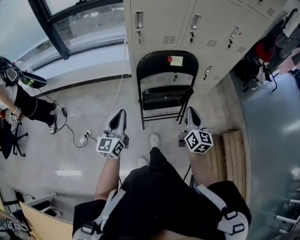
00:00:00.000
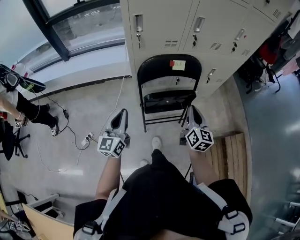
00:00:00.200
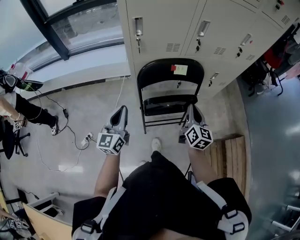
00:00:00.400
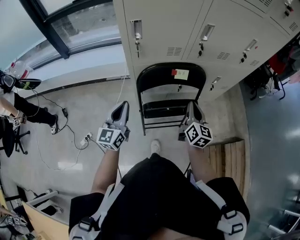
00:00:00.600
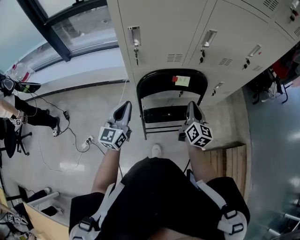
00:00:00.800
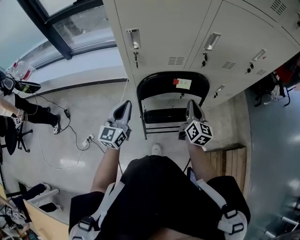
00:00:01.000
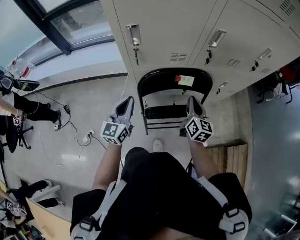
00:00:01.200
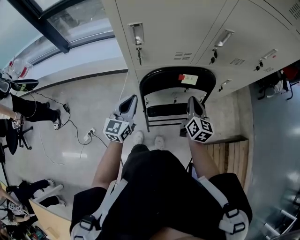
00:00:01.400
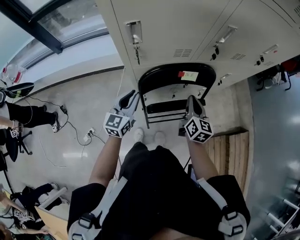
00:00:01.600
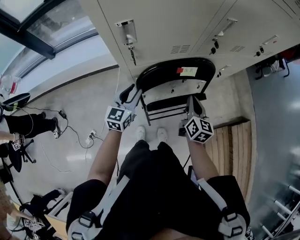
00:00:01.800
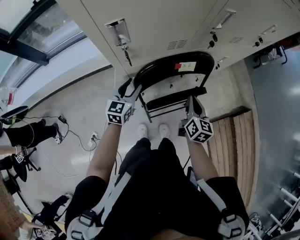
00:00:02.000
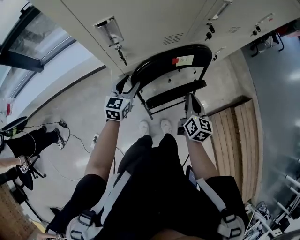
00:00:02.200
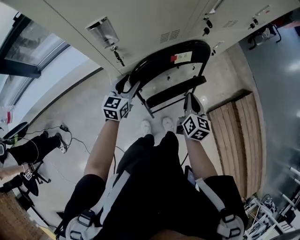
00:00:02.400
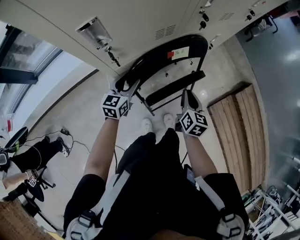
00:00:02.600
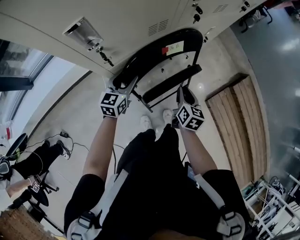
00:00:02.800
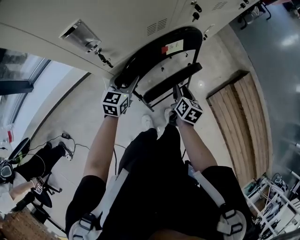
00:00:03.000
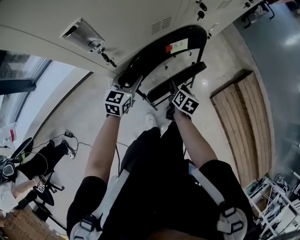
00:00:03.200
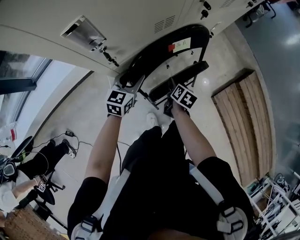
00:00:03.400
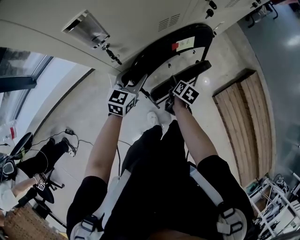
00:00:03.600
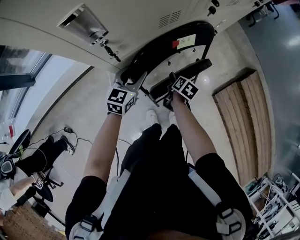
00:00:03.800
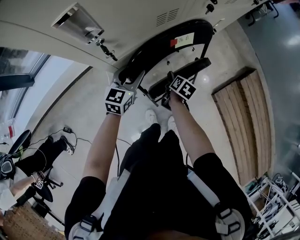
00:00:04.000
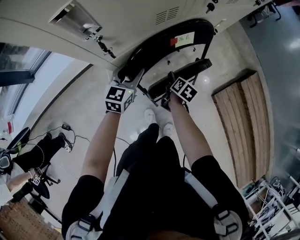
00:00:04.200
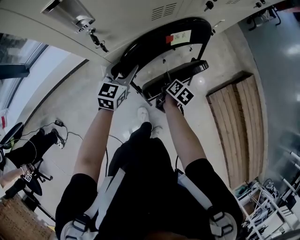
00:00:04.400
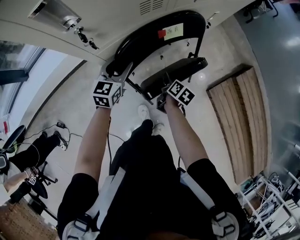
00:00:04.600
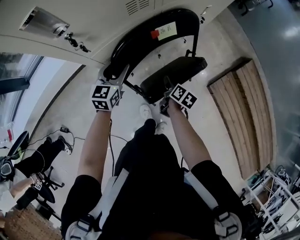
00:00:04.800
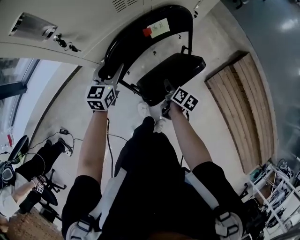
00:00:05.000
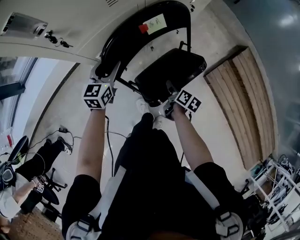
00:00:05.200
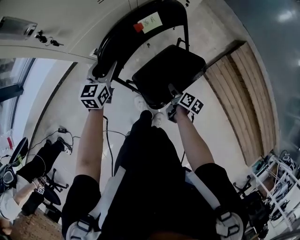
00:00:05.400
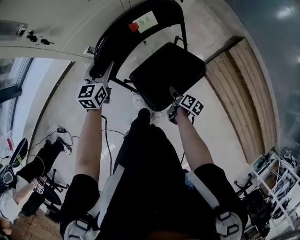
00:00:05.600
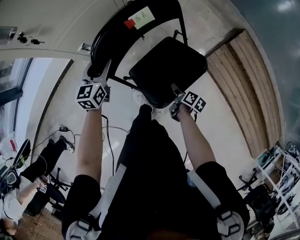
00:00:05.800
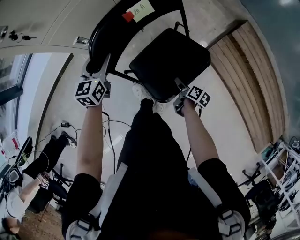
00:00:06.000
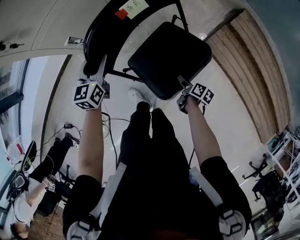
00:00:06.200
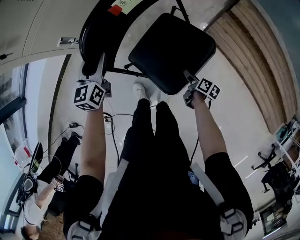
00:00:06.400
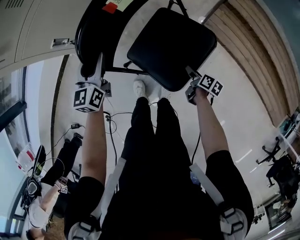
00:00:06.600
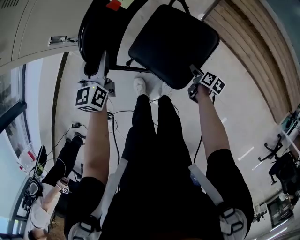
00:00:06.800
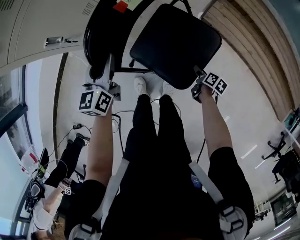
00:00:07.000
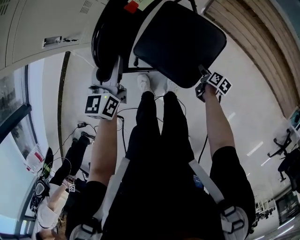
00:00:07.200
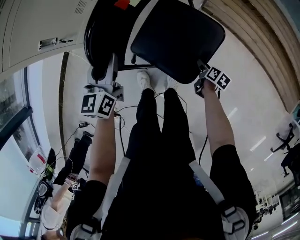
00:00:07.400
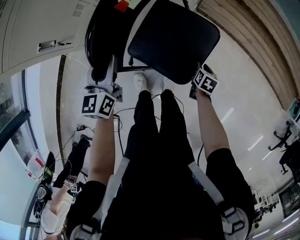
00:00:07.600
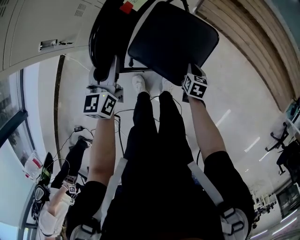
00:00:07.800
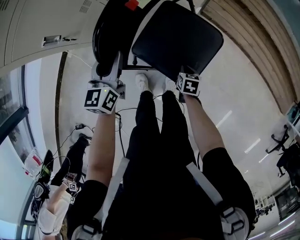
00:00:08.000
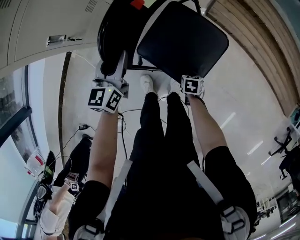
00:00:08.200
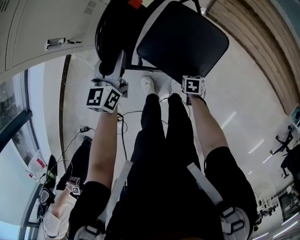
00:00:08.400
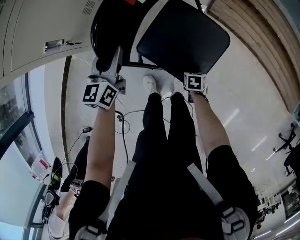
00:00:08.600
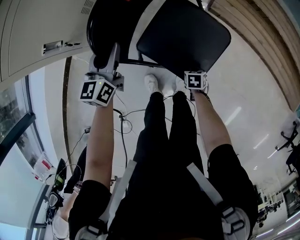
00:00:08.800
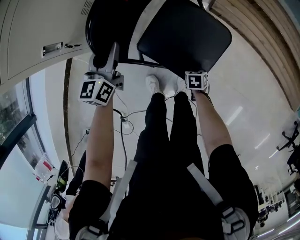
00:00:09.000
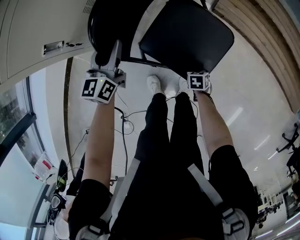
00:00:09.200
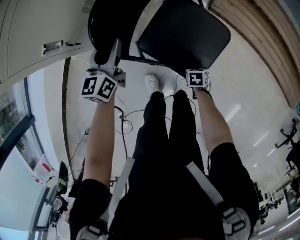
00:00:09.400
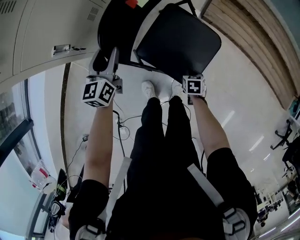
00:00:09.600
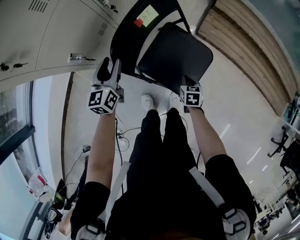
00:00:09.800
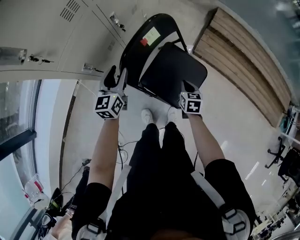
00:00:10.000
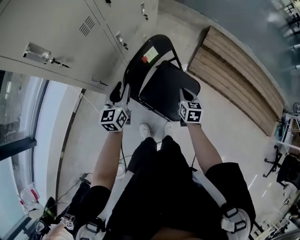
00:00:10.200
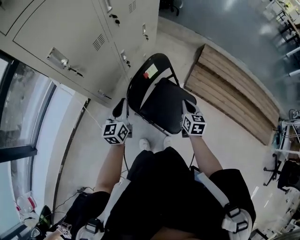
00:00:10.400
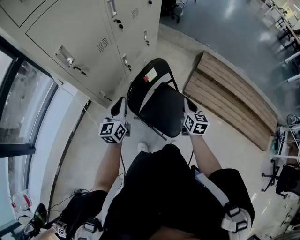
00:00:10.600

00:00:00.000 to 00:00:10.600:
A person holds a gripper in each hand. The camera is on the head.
00:00:00.000 to 00:00:01.600: Both grippers travel together forward, roughly 25 cm.
00:00:01.600 to 00:00:03.000: The left gripper moves downward and forward, about 15 cm, turns by approximately 30 degrees, and opens. The right gripper travels downward and backward by some 15 cm, turns by roughly 40 degrees, and opens.
00:00:03.000 to 00:00:04.600: The right gripper travels downward by roughly 10 cm.
00:00:04.600 to 00:00:06.000: The left gripper is displaced backward and to the right by roughly 10 cm; the right gripper is displaced backward, to the right and downward by roughly 30 cm.
00:00:06.000 to 00:00:07.600: The left gripper shifts by roughly 15 cm. The right gripper ends up roughly 20 cm from where it was, changes its angle by some 40 degrees, and closes its fingers.
00:00:07.600 to 00:00:09.000: The right gripper ends up approximately 15 cm from where it was, turns by roughly 30 degrees, and closes up; the left gripper ends up approximately 10 cm from where it was.
00:00:09.000 to 00:00:10.600: The left gripper heads upward, covering about 25 cm, and closes; the right gripper shifts some 50 cm upward, and tips its fingers upward by about 50 degrees.

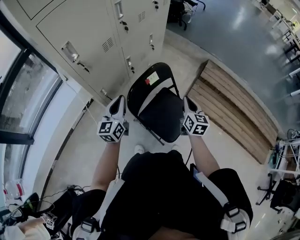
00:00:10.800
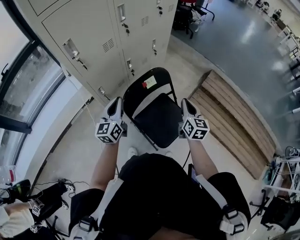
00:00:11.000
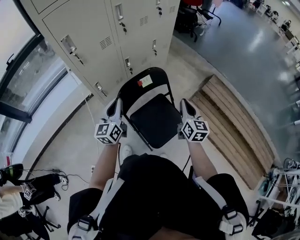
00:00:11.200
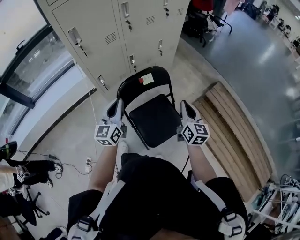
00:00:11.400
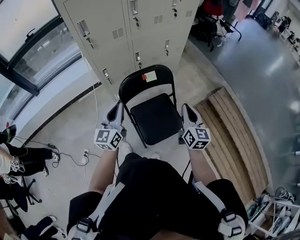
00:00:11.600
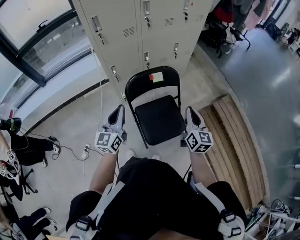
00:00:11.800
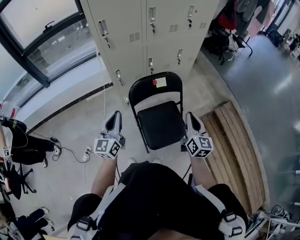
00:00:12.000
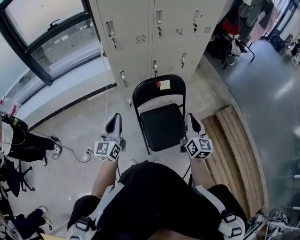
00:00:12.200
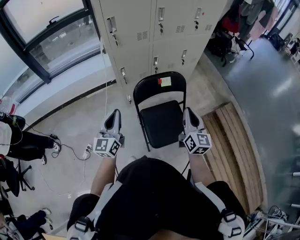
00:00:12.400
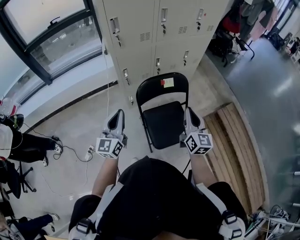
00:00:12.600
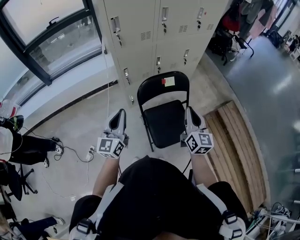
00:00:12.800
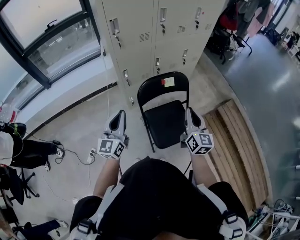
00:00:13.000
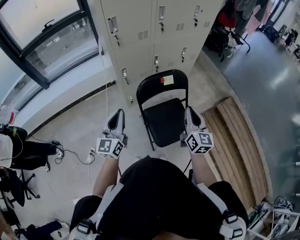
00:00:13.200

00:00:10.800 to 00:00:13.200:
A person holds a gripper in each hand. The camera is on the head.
00:00:10.800 to 00:00:12.000: The left gripper ends up roughly 25 cm from where it was, and swivels roughly 30 degrees, while the right gripper ends up some 10 cm from where it was, and changes its angle by roughly 30 degrees.
00:00:12.000 to 00:00:13.200: The grippers both shift to the left by roughly 5 cm.

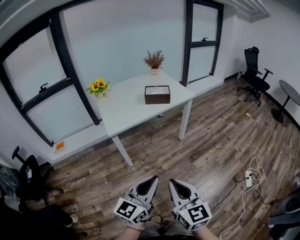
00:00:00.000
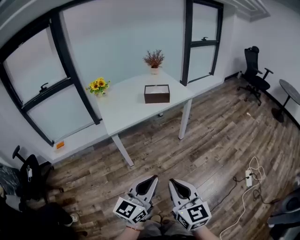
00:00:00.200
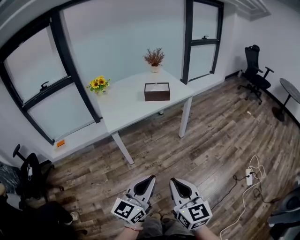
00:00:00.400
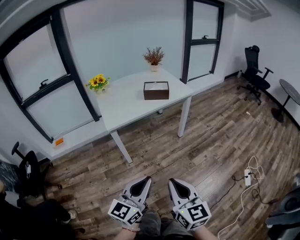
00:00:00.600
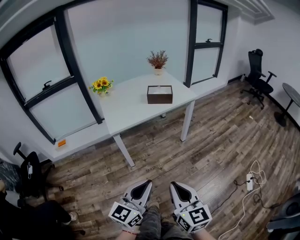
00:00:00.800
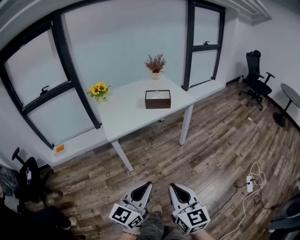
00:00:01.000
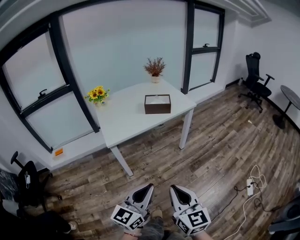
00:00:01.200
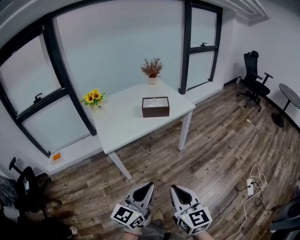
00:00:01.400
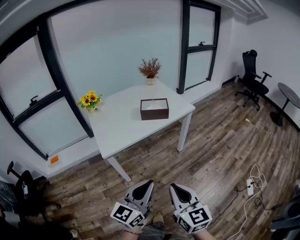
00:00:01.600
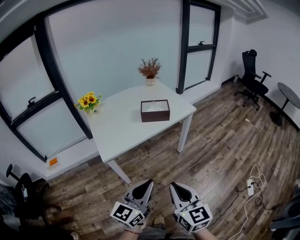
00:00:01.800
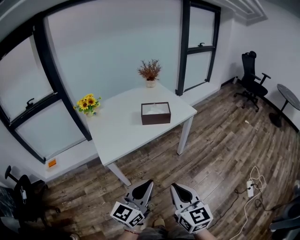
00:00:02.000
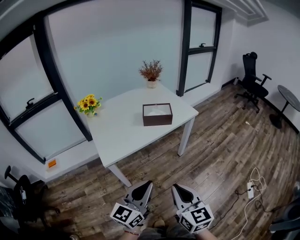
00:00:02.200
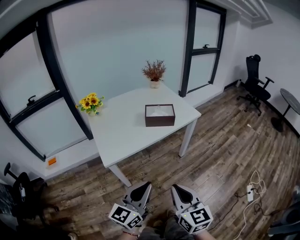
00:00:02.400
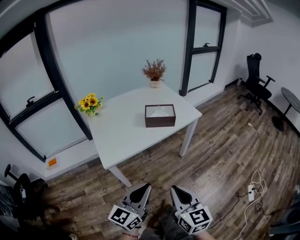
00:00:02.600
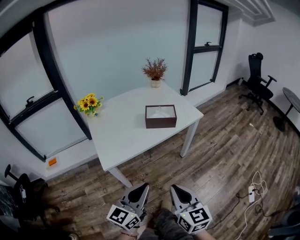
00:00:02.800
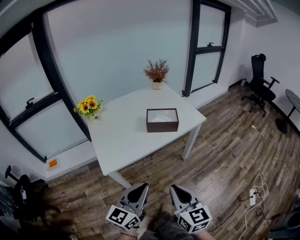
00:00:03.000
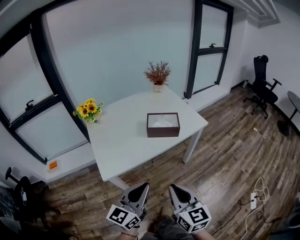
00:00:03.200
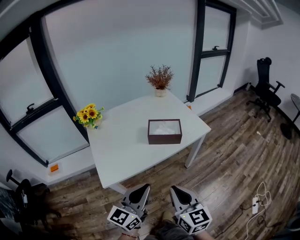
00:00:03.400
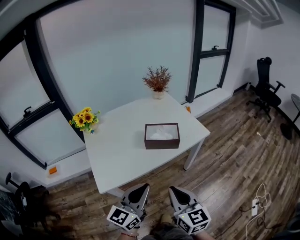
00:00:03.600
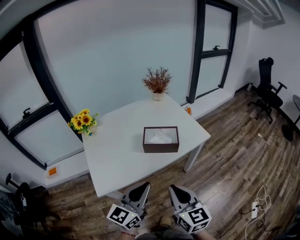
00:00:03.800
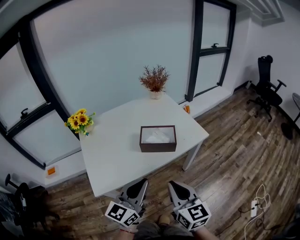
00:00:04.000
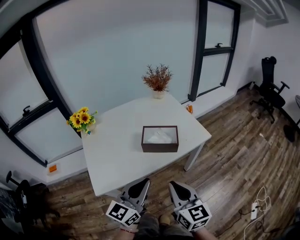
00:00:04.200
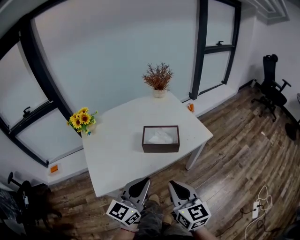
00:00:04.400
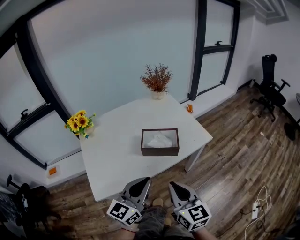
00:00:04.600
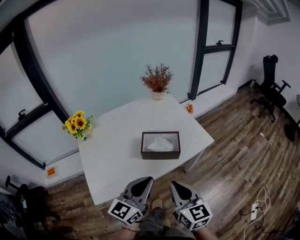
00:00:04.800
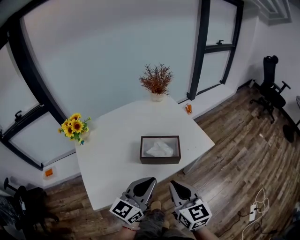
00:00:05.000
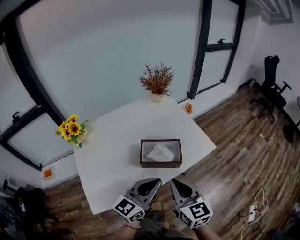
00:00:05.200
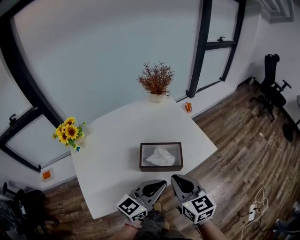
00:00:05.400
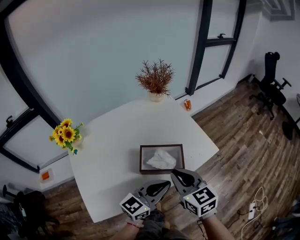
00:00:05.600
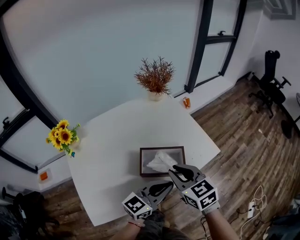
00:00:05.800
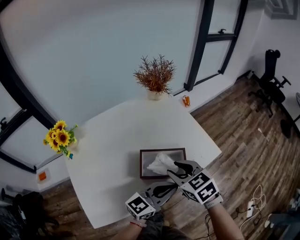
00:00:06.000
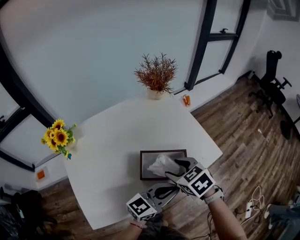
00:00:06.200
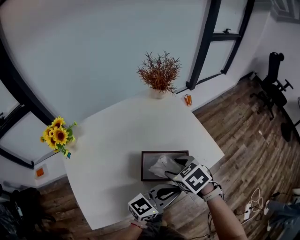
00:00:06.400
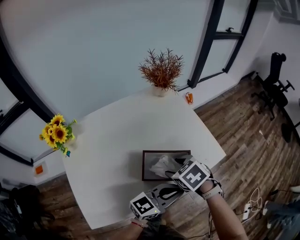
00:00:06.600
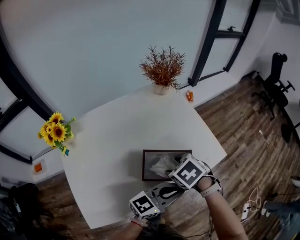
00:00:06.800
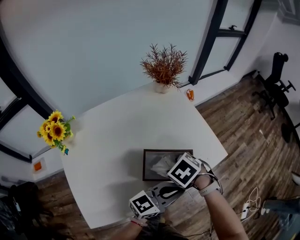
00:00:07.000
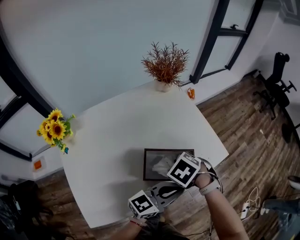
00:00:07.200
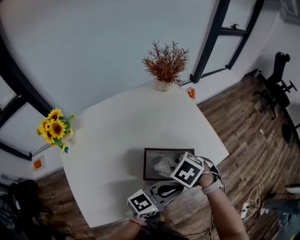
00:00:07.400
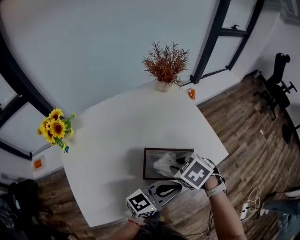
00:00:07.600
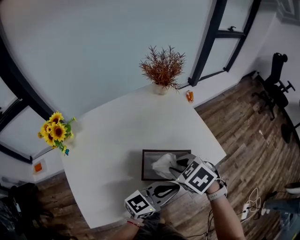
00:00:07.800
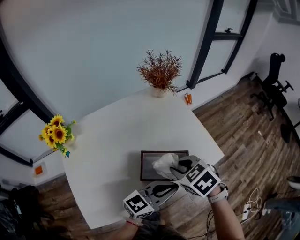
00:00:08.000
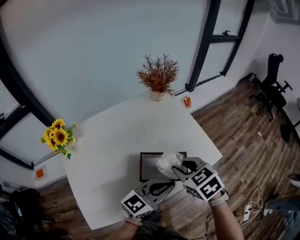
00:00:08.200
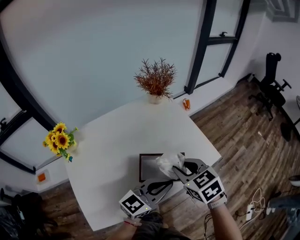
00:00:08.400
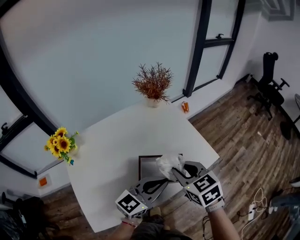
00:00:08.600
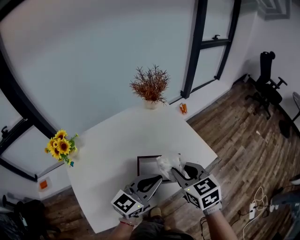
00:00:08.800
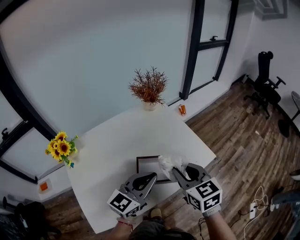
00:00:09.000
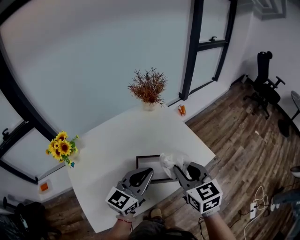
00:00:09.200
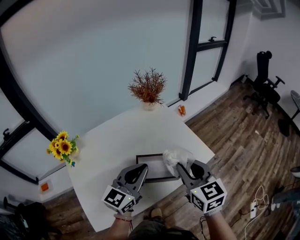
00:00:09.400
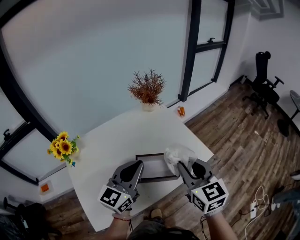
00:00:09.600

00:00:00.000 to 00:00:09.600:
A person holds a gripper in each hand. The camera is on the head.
00:00:00.000 to 00:00:01.600: Both grippers travel together forward, about 15 cm.
00:00:01.600 to 00:00:03.200: The grippers both shift forward by some 15 cm.
00:00:03.200 to 00:00:04.800: The two grippers go some 20 cm forward.
00:00:04.800 to 00:00:06.400: The right gripper travels forward and downward by approximately 25 cm, points its fingers some 50 degrees further downward, and opens up. The left gripper moves forward, downward and to the right, some 15 cm, and rotates approximately 30 degrees.
00:00:06.400 to 00:00:08.000: The right gripper closes.
00:00:08.000 to 00:00:09.600: The left gripper shifts some 15 cm upward and to the left, and changes its angle by roughly 30 degrees. The right gripper is displaced upward and to the right by some 15 cm, and tips its fingers upward by approximately 40 degrees.

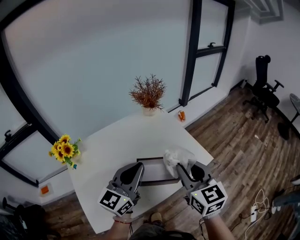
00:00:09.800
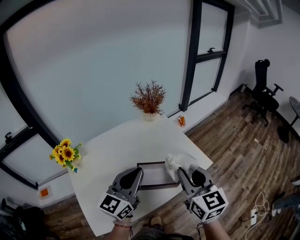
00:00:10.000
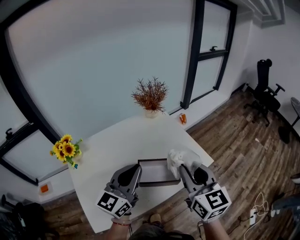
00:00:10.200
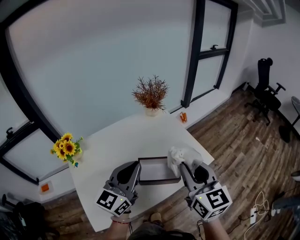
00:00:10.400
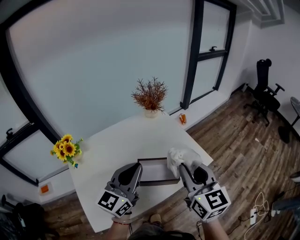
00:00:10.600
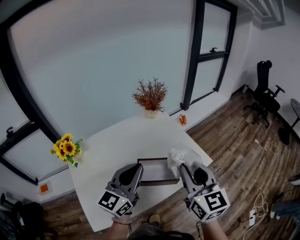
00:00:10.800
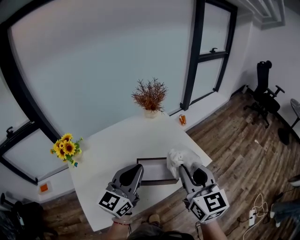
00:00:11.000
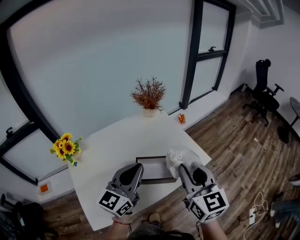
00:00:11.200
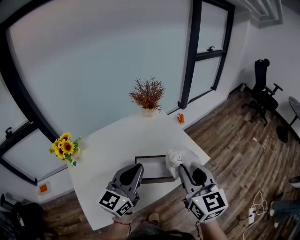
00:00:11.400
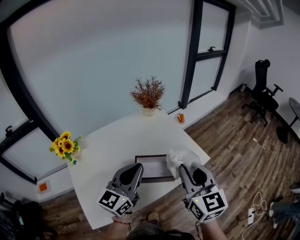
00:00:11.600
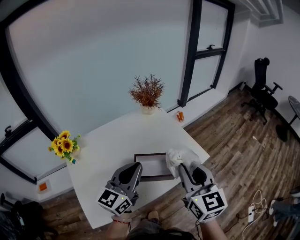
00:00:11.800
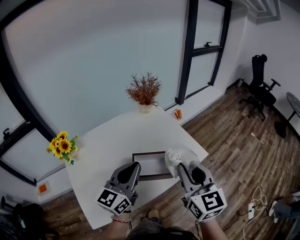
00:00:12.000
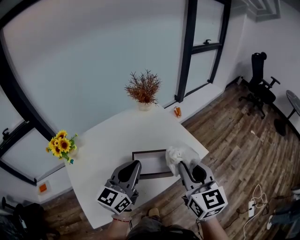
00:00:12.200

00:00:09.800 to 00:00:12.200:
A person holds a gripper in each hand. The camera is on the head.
00:00:09.800 to 00:00:12.200: There are only small adjustments of the grippers.
